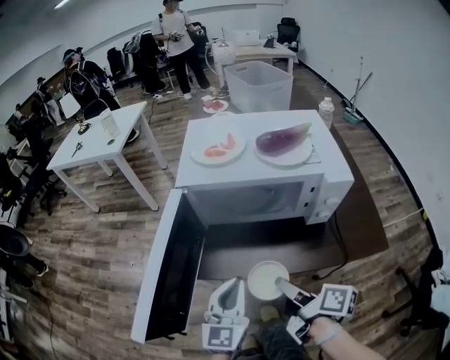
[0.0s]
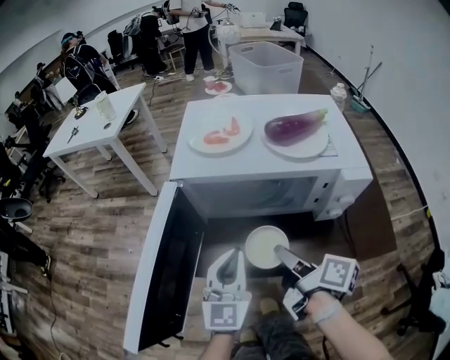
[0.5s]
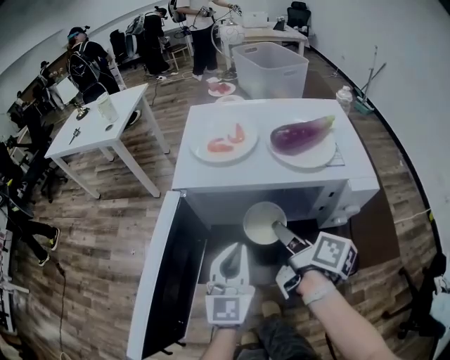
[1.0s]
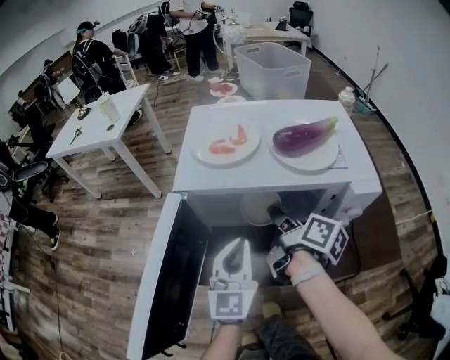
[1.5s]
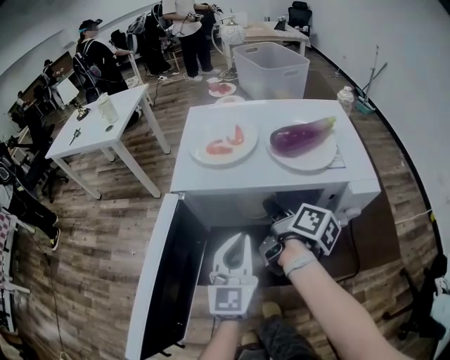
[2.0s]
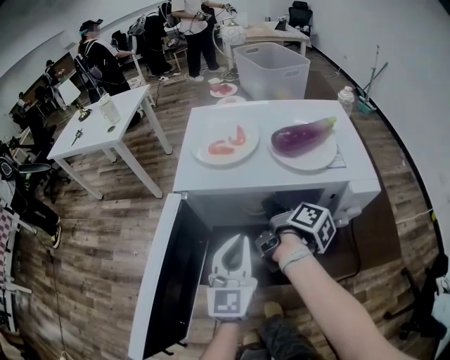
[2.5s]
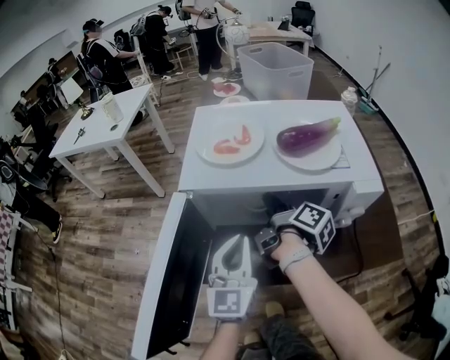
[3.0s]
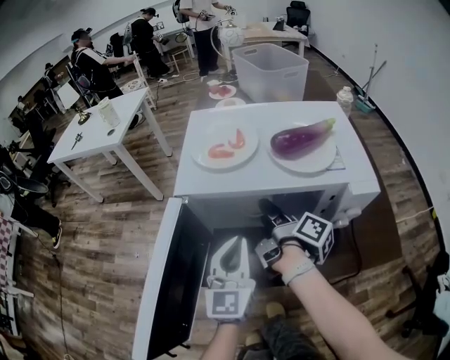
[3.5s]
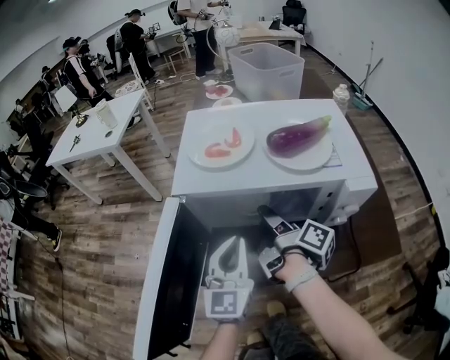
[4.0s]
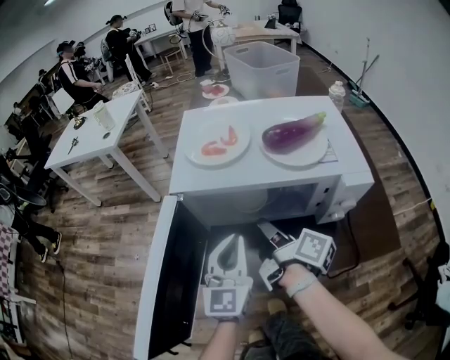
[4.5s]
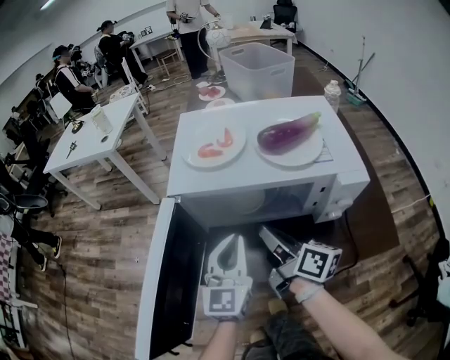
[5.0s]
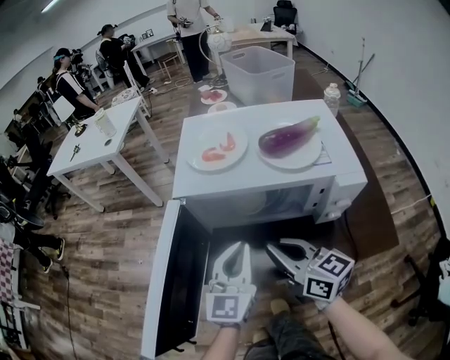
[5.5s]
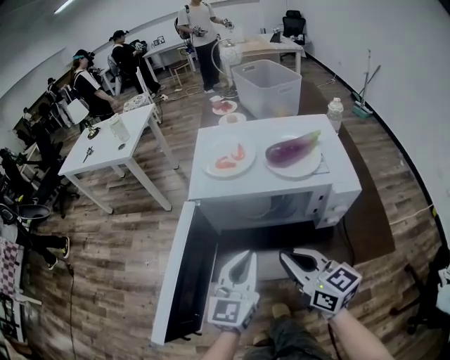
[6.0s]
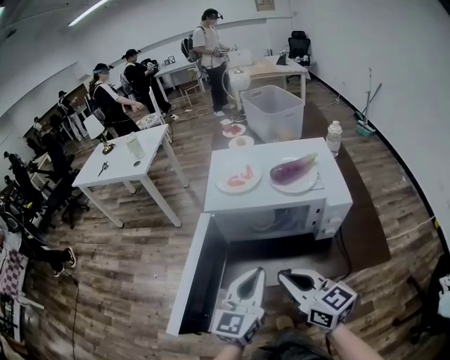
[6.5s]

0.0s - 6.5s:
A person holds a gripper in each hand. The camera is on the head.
0.0s - 2.0s: The left gripper changes place by about 15 cm.
4.5s - 6.5s: The left gripper moves approximately 15 cm.

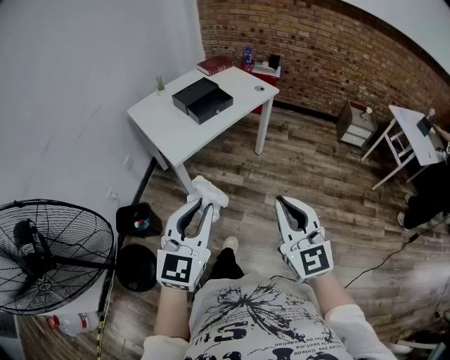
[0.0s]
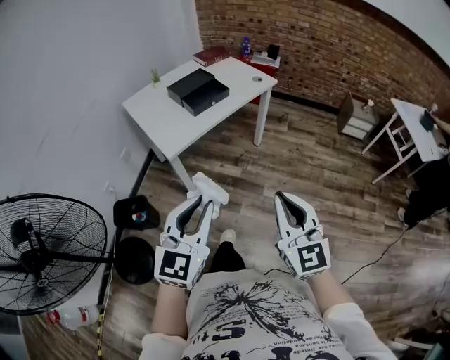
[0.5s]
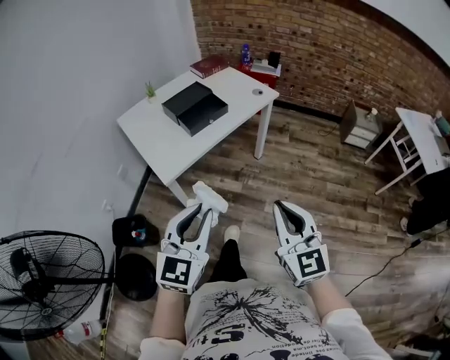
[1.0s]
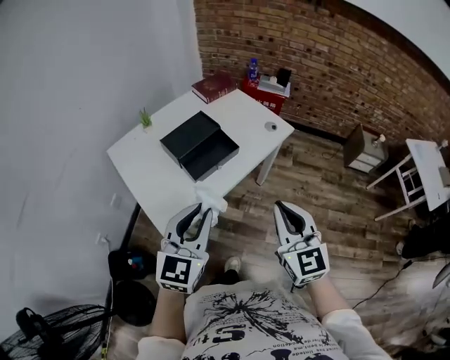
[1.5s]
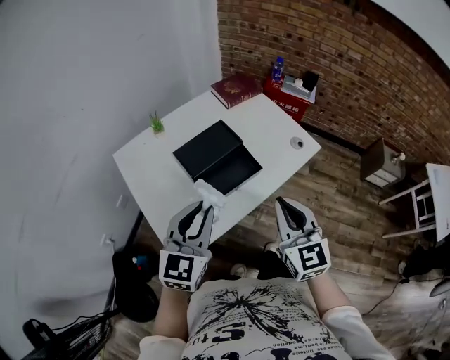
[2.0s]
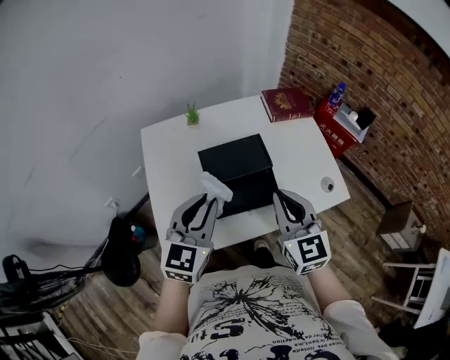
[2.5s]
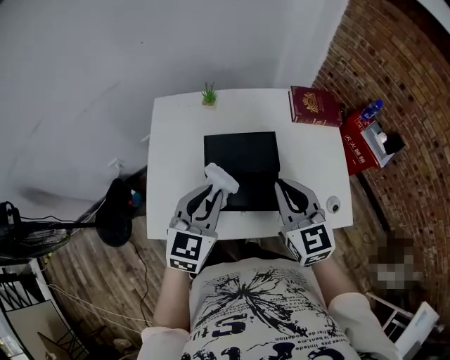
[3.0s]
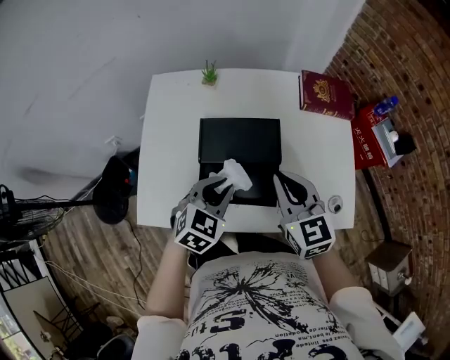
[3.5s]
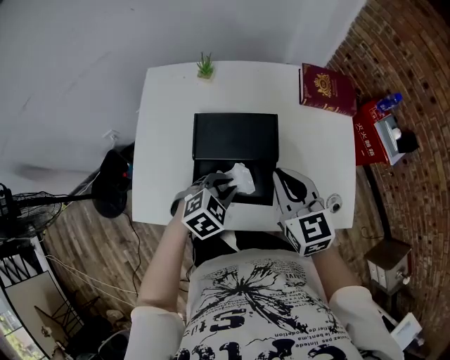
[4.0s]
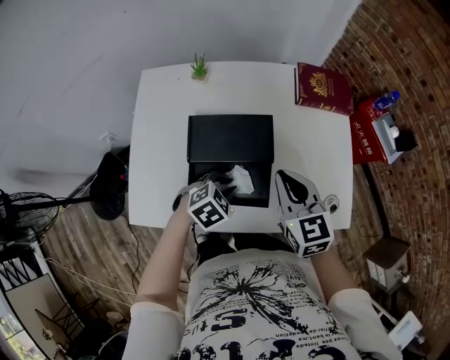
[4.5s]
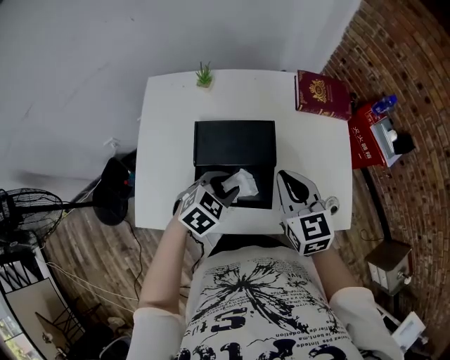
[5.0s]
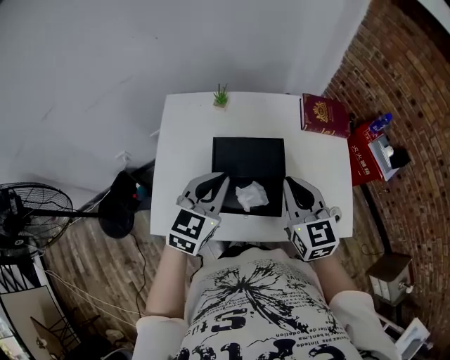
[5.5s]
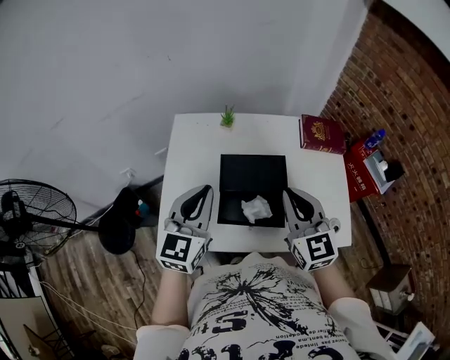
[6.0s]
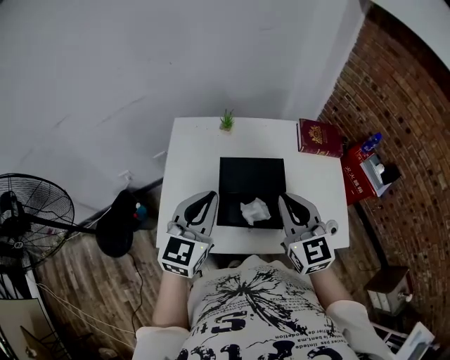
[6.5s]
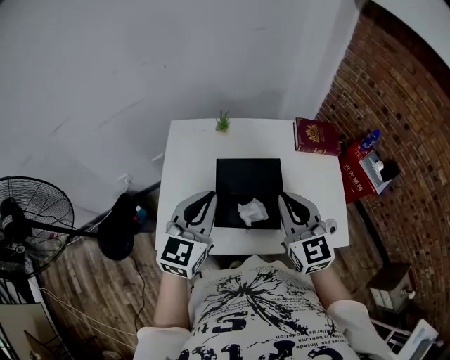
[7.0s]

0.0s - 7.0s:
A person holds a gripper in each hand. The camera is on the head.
0.0s - 2.0s: Both grippers are carried forward, roughly 60 cm.
2.0s - 3.5s: The left gripper changes place by some 30 cm, and changes its angle by about 40 degrees. The right gripper moves some 30 cm, and changes its angle by some 50 degrees.
5.0s - 7.0s: The left gripper goes approximately 25 cm upward and to the left, tips its fingers upward by some 40 degrees, and closes. The right gripper travels upward, to the left and backward by approximately 15 cm.

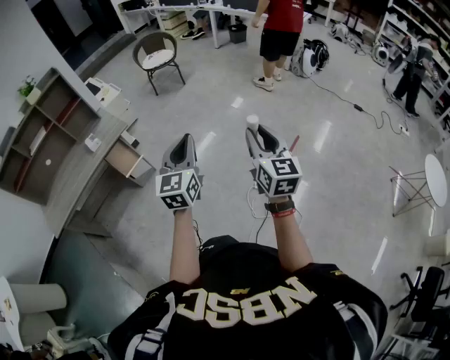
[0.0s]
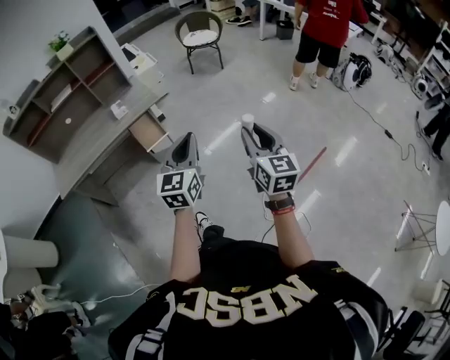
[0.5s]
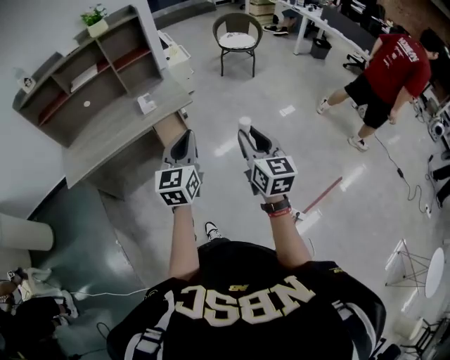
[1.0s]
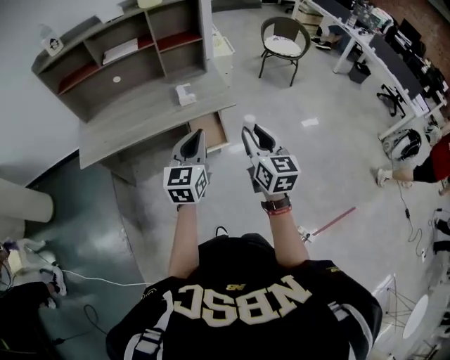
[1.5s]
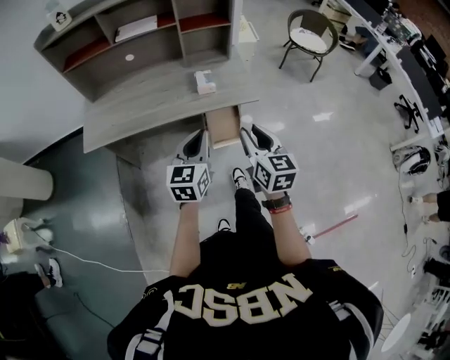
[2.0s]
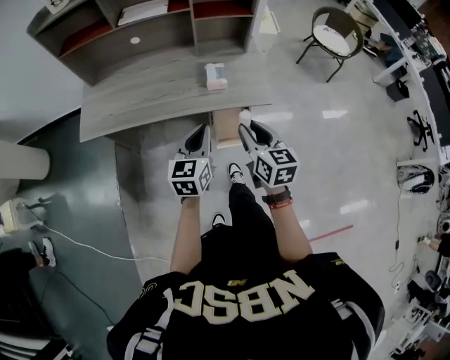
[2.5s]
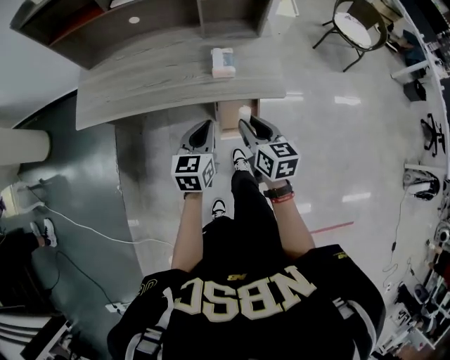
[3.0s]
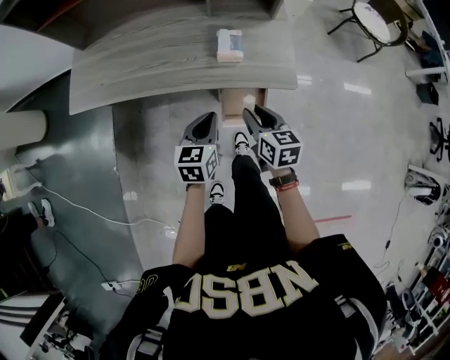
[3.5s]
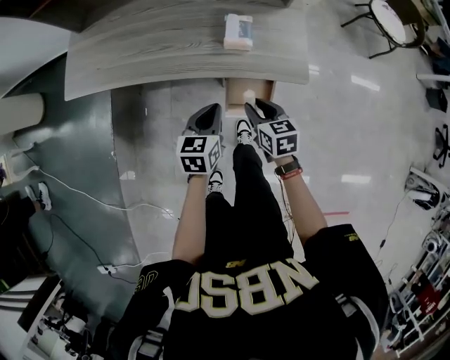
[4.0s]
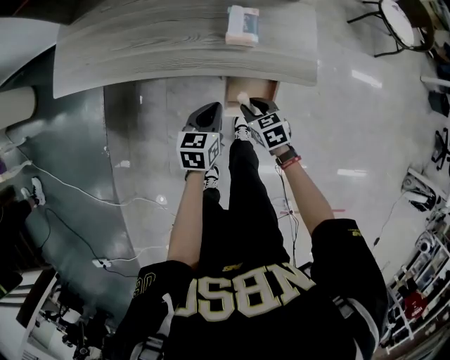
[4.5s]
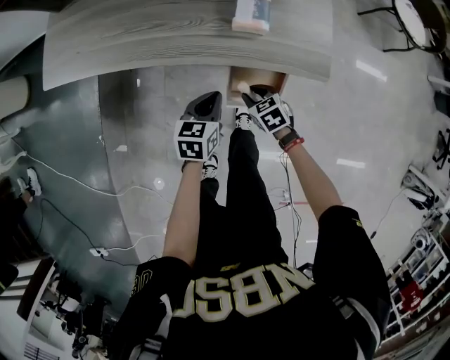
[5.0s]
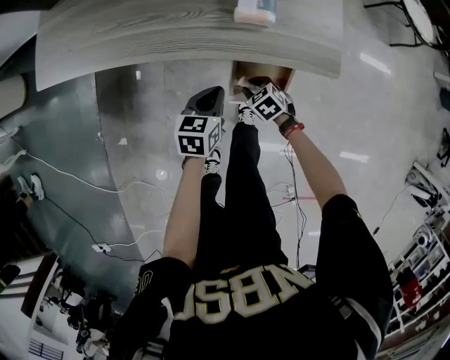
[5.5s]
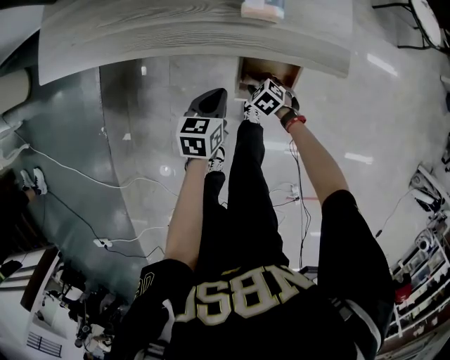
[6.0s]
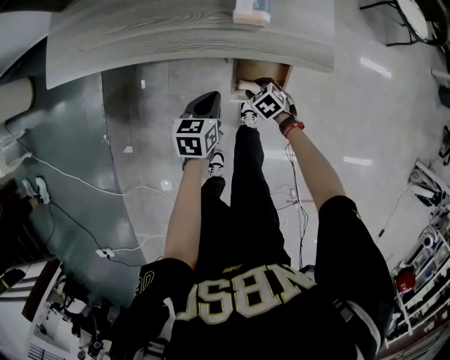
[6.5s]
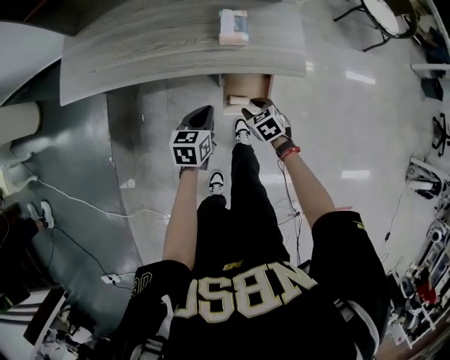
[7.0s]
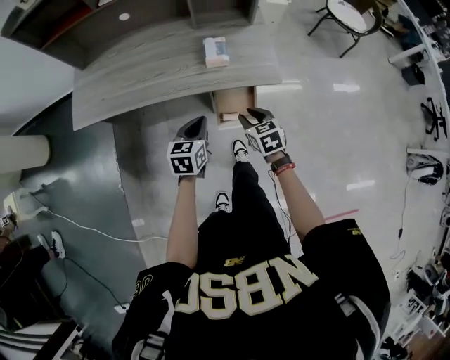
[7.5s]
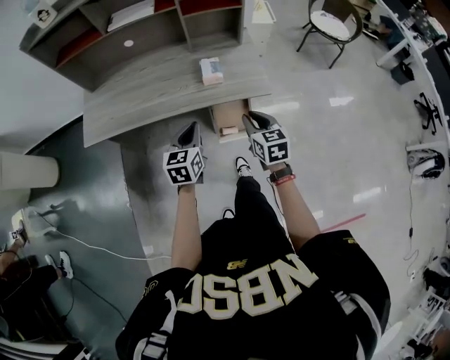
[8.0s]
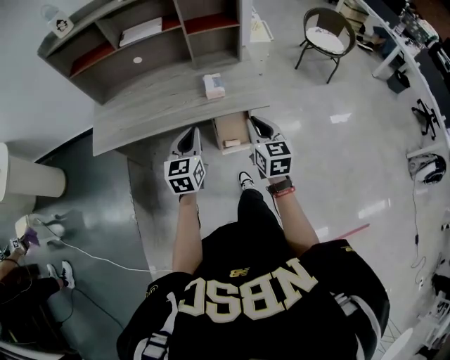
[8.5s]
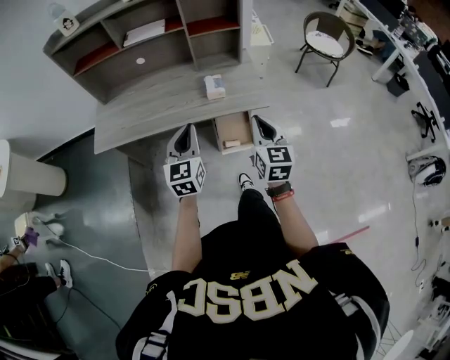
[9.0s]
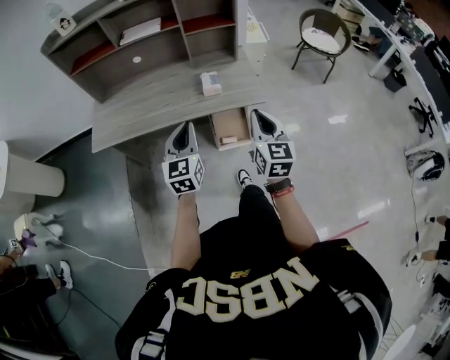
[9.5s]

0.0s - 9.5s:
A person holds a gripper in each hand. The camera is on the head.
0.0s - 2.0s: The pair of grippers is taken roughly 60 cm. The left gripper changes its angle by some 30 degrees. The right gripper changes its angle by about 40 degrees.
2.0s - 4.0s: Both grippers travel together downward and forward, approximately 25 cm. The left gripper turns by approximately 30 degrees, while the right gripper rotates some 40 degrees.
4.0s - 5.5s: The left gripper is displaced downward by about 15 cm. Meanwhile the right gripper is displaced downward by about 25 cm, and rotates approximately 40 degrees.
5.5s - 7.5s: The right gripper shifts about 25 cm upward, and turns by about 40 degrees; the left gripper travels upward by approximately 15 cm.
7.5s - 9.5s: The grippers both shift upward by about 20 cm. The right gripper tips its fingers upward by some 40 degrees, and closes up. Meanwhile the left gripper rotates about 30 degrees.

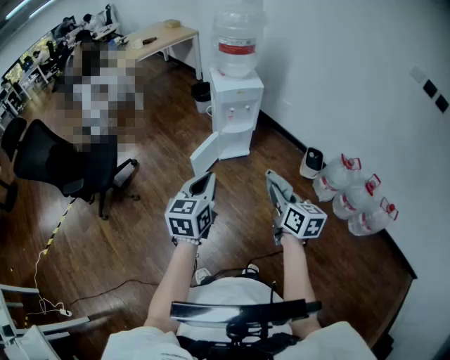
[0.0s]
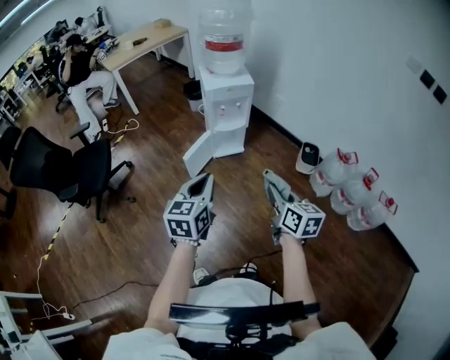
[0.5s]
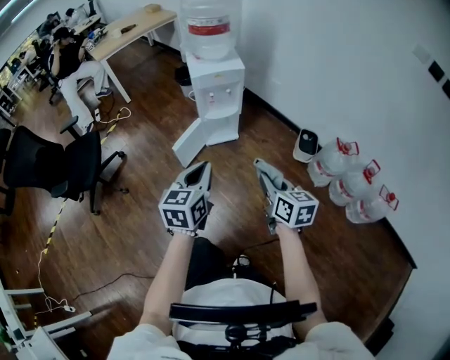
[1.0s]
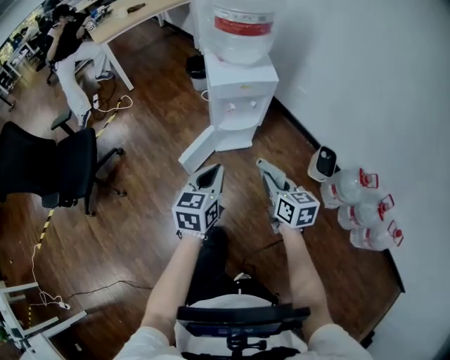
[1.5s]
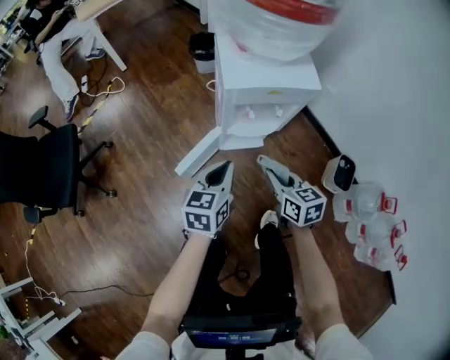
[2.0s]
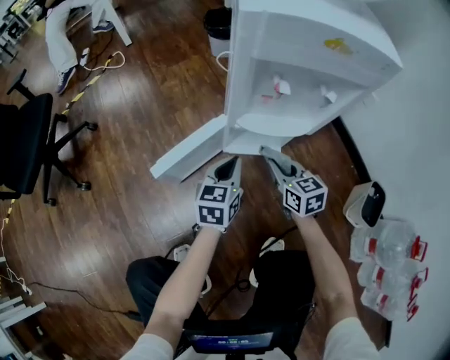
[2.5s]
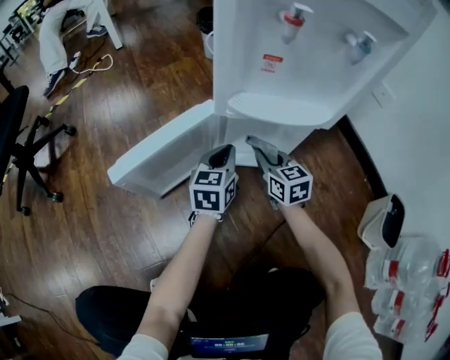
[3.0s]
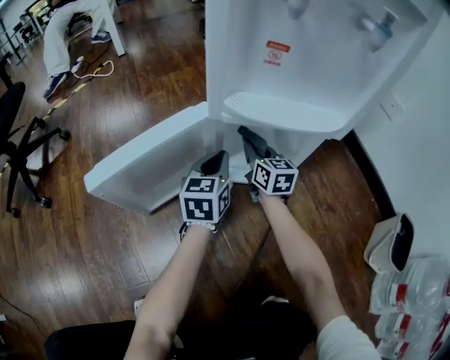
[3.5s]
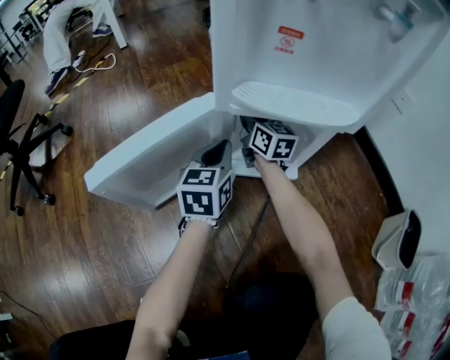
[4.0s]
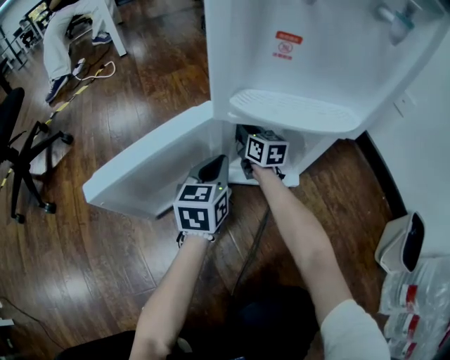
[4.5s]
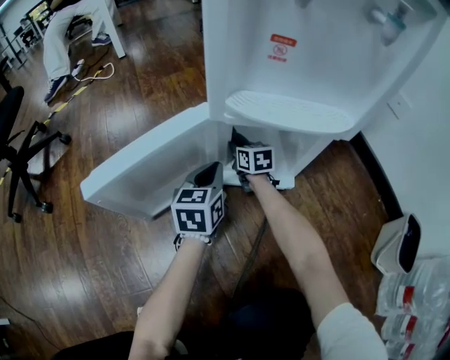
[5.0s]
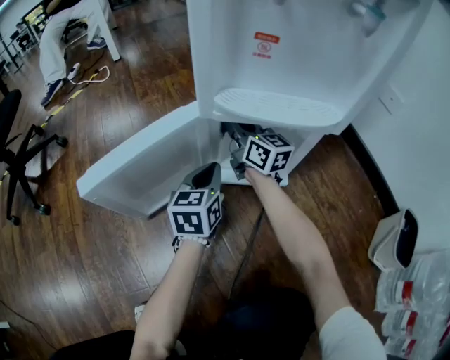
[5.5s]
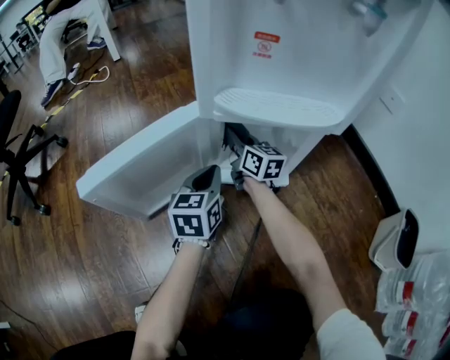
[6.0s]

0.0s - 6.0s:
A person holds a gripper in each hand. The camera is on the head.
0.0s - 2.0s: The two grippers travel together, forward, roughly 50 cm. The grippers both shift downward by roughly 30 cm. The right gripper rotates some 30 degrees.
2.0s - 4.0s: The right gripper travels downward and forward by some 60 cm, and rotates about 30 degrees. The left gripper travels downward by some 50 cm.
4.0s - 6.0s: The right gripper swings up and down, approximately 20 cm each way, with 2 reversals.
